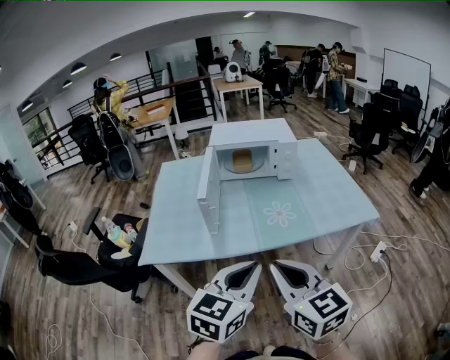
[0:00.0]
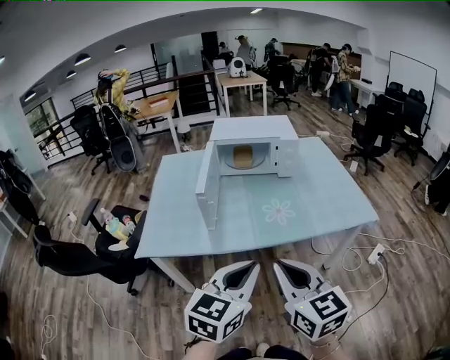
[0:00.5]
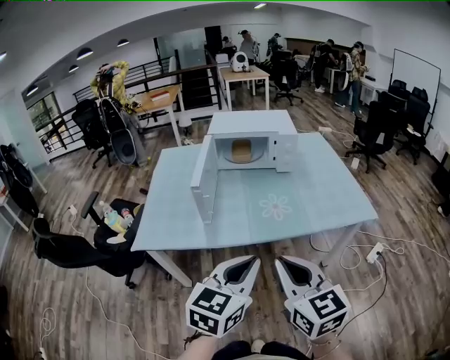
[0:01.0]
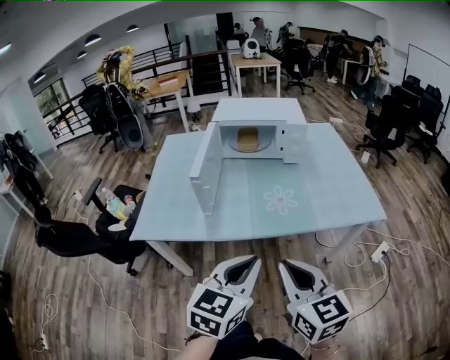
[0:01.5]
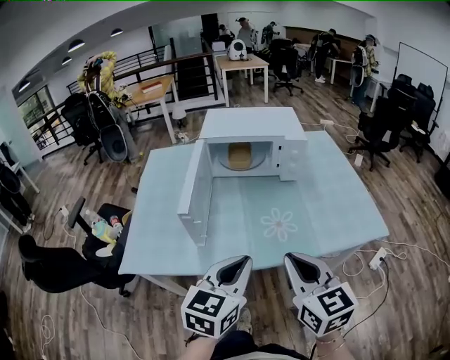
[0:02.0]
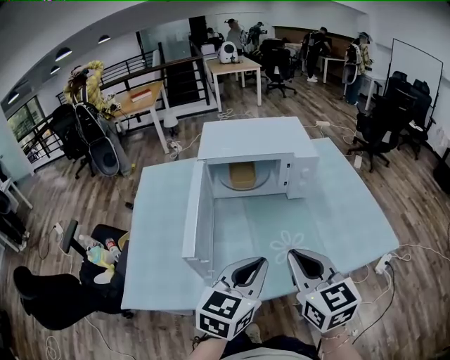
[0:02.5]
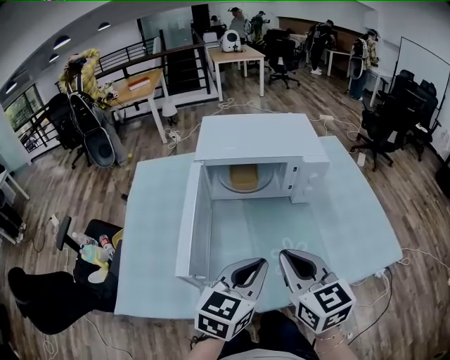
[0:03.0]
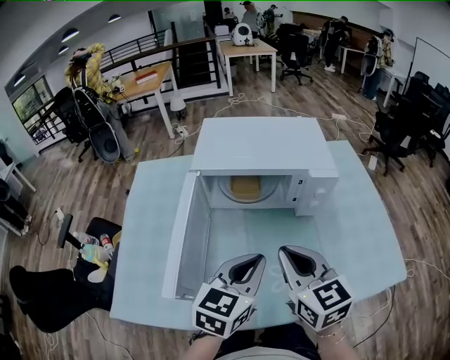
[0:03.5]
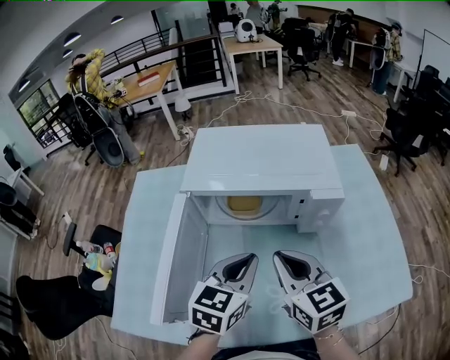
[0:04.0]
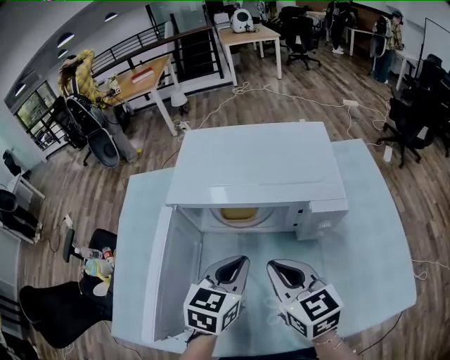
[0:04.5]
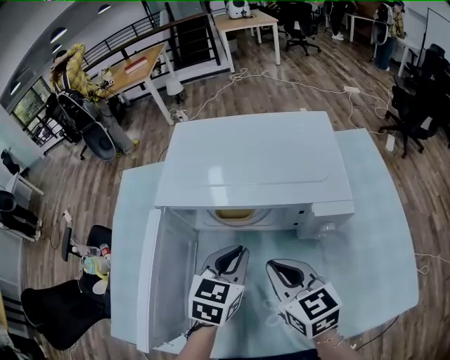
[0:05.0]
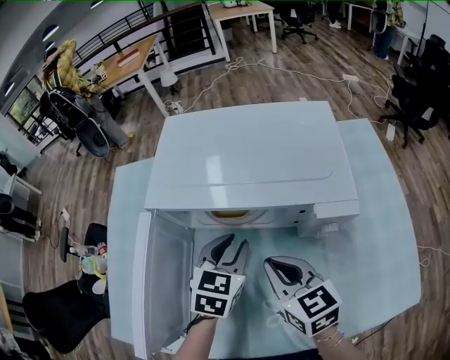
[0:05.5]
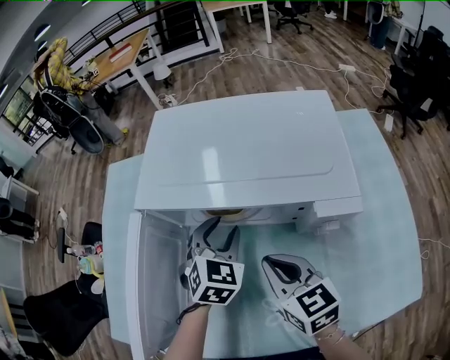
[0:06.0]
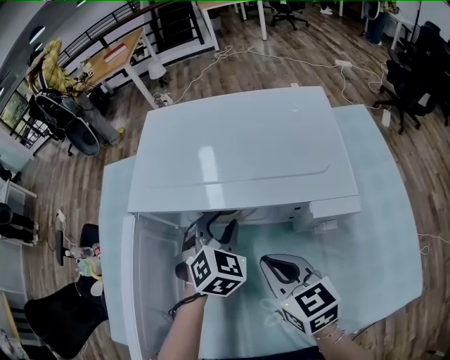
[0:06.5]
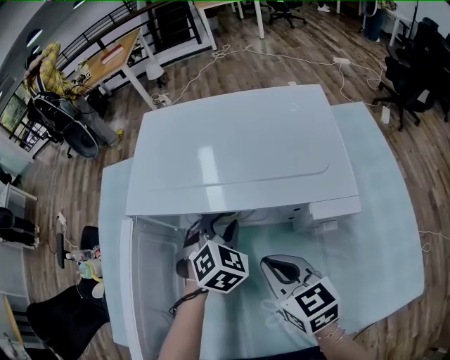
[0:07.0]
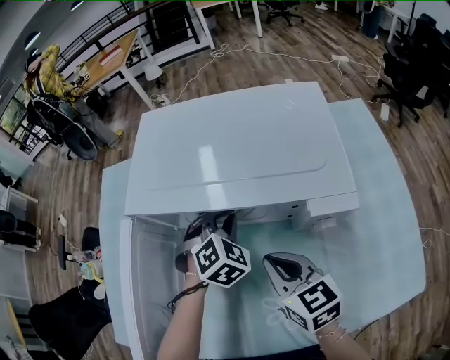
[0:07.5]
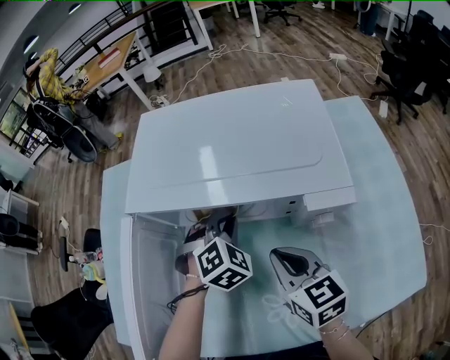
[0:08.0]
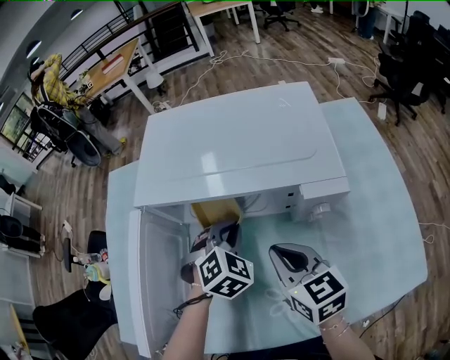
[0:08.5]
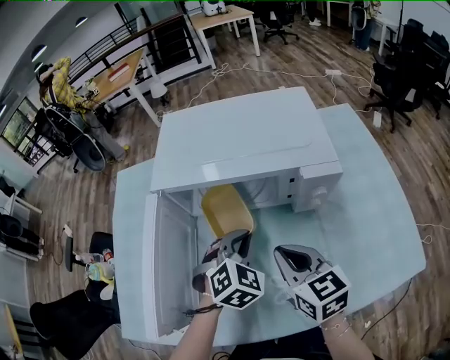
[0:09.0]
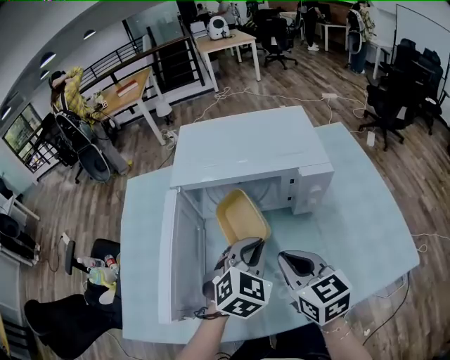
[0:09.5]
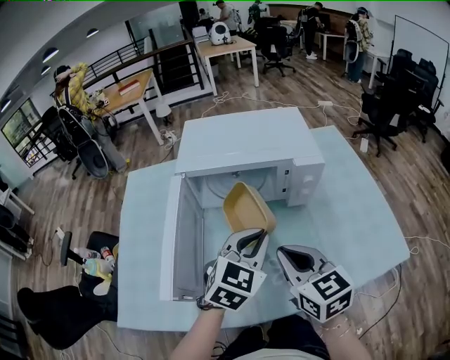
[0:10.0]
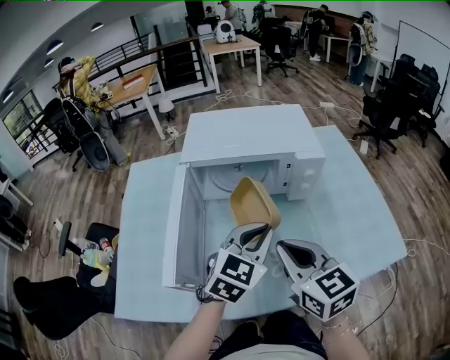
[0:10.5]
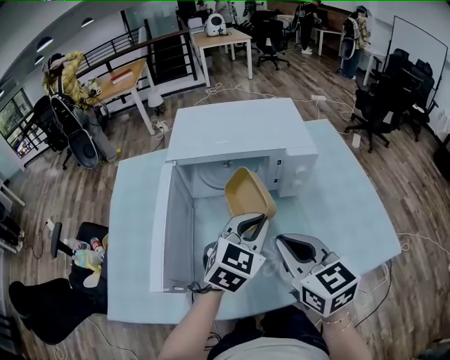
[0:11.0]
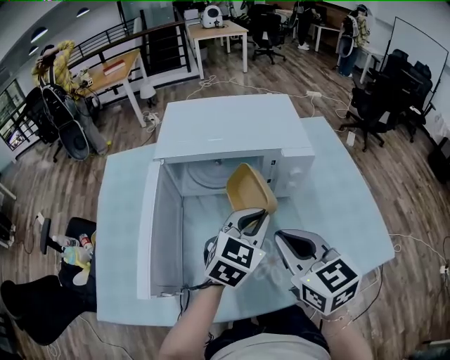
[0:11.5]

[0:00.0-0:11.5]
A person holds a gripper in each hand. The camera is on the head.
0:00.0 to 0:02.0: Both grippers move forward, about 15 cm.
0:02.0 to 0:04.0: Both grippers travel together forward, some 35 cm.
0:04.0 to 0:06.0: The right gripper goes roughly 15 cm downward and forward. The left gripper moves forward and downward, some 20 cm, turns by about 30 degrees, and opens its fingers.
0:06.0 to 0:07.5: The left gripper changes its angle by roughly 20 degrees, and closes.
0:07.5 to 0:09.5: The right gripper goes approximately 15 cm backward and upward, while the left gripper is displaced backward and upward by about 20 cm, and turns by about 20 degrees.
0:09.5 to 0:11.5: The right gripper goes approximately 5 cm upward, while the left gripper goes about 5 cm to the right, and changes its angle by approximately 20 degrees.

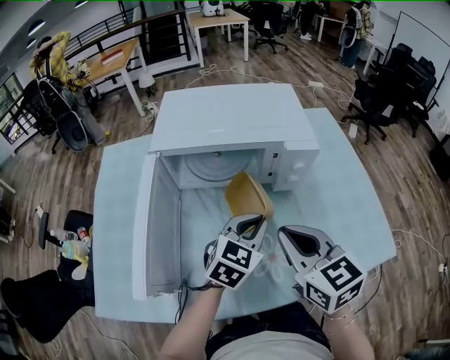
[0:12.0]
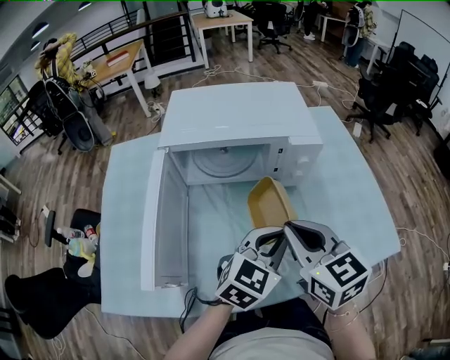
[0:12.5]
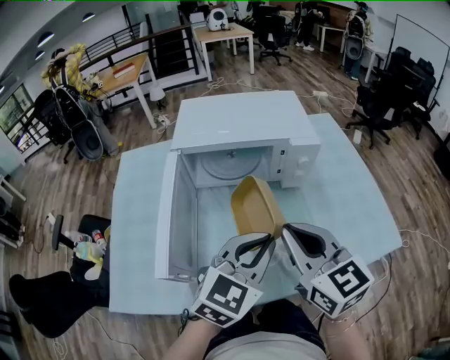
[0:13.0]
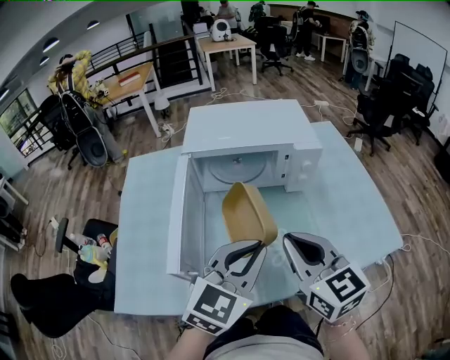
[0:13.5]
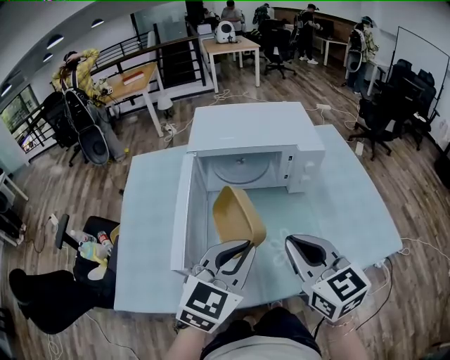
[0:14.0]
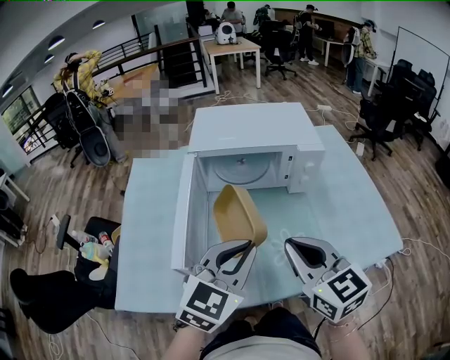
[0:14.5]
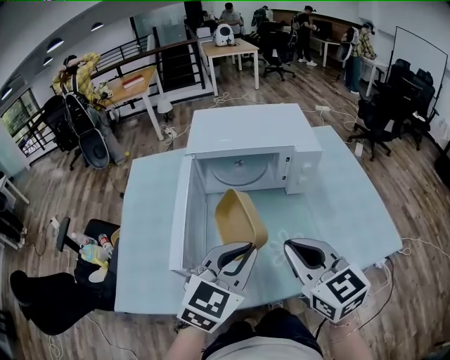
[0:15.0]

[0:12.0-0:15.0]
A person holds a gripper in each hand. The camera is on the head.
0:12.0 to 0:13.5: The left gripper shifts approximately 20 cm backward and upward. The right gripper travels backward and upward by some 10 cm.
0:13.5 to 0:15.0: The grippers stay close to where they were, moving slightly.

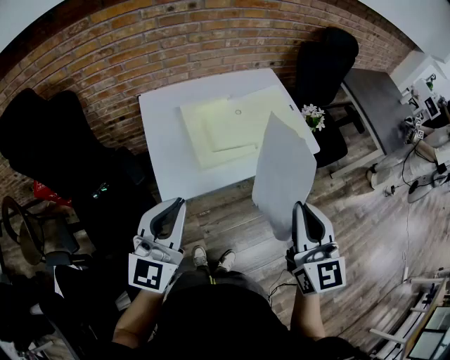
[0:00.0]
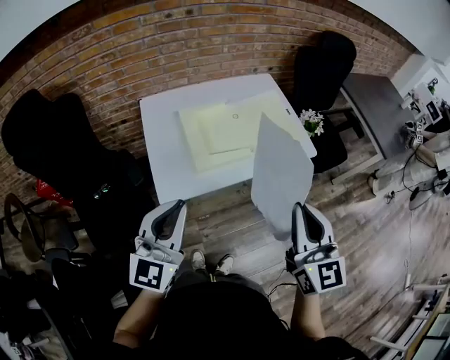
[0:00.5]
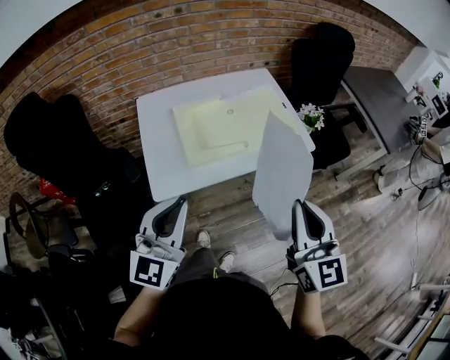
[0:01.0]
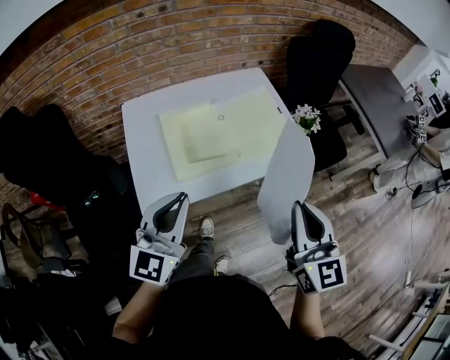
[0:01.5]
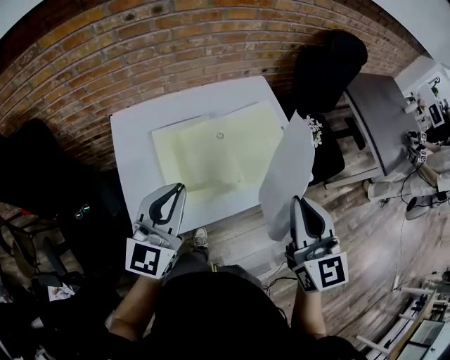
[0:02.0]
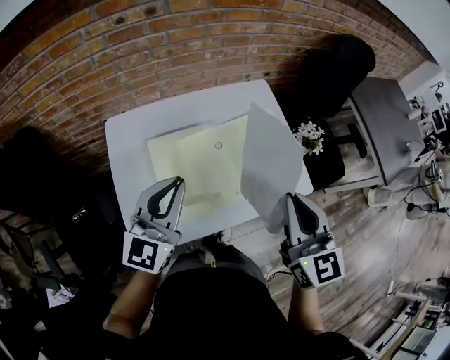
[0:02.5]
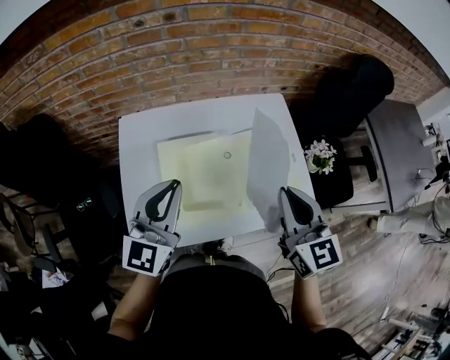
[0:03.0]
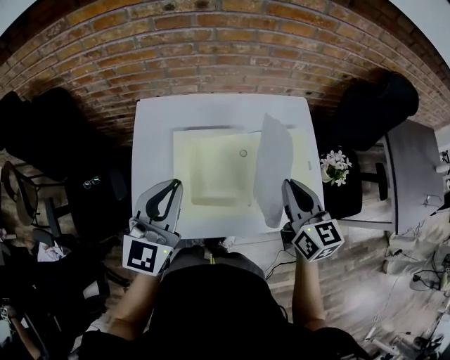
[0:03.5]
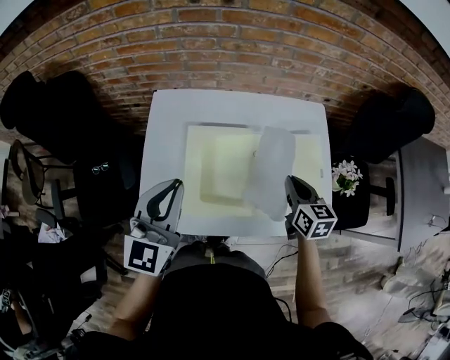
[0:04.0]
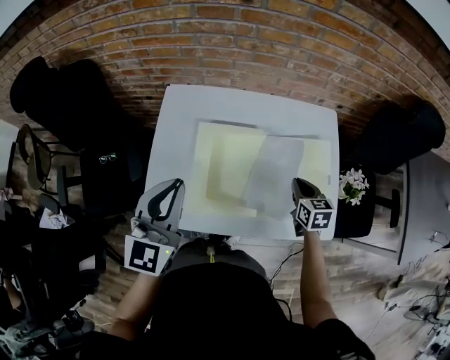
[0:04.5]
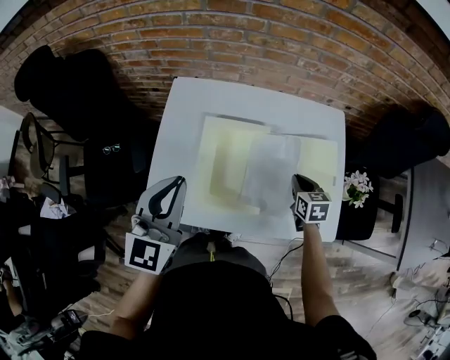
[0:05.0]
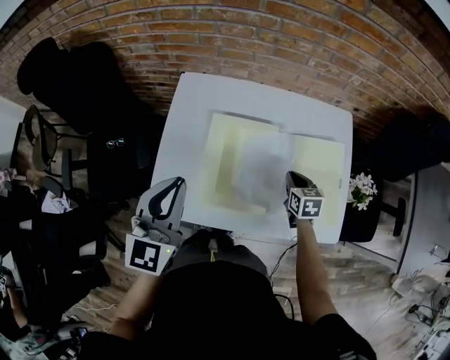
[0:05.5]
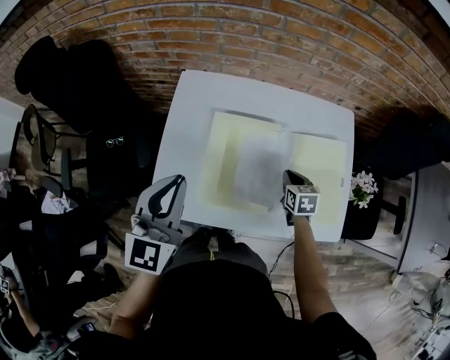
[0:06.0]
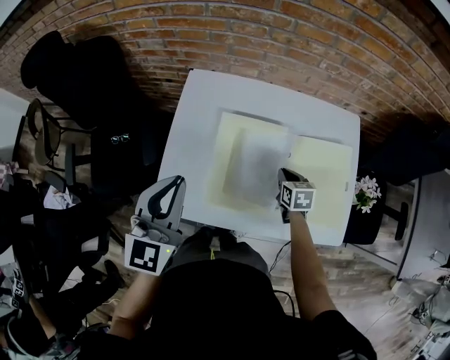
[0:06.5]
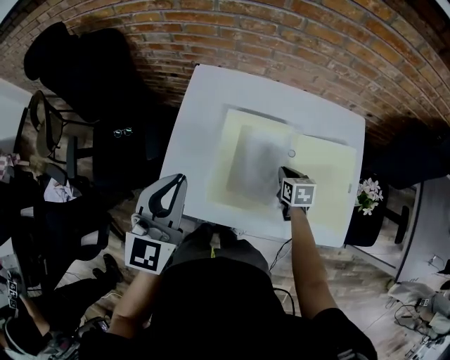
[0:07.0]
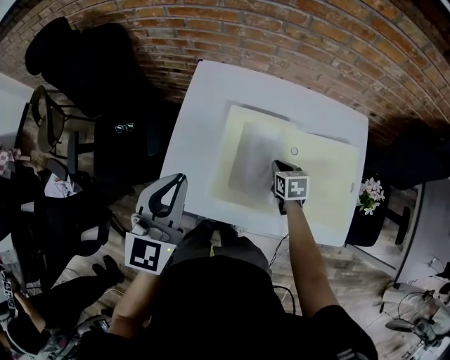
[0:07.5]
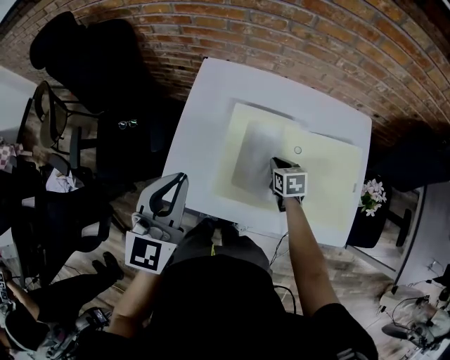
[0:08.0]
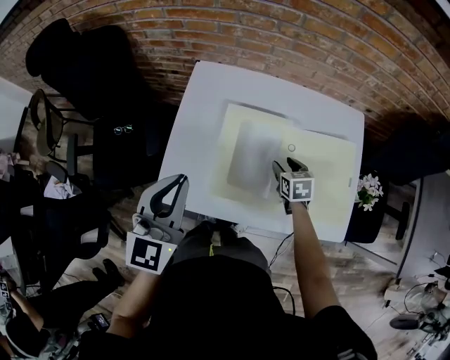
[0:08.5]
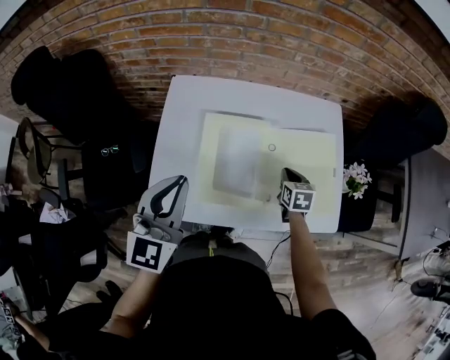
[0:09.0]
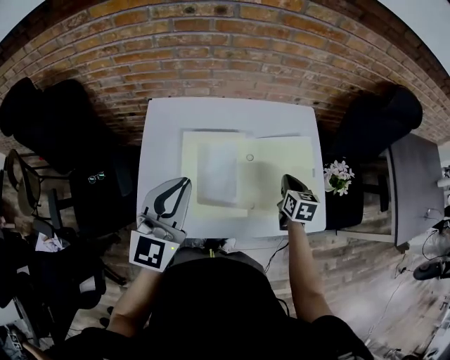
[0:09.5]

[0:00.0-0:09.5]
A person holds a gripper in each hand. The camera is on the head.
0:00.0 to 0:02.0: The two grippers go roughly 20 cm forward.
0:02.0 to 0:04.0: The left gripper shifts roughly 5 cm forward, and changes its angle by about 20 degrees, while the right gripper heads forward and downward, covering some 30 cm, and turns by about 40 degrees.
0:04.0 to 0:05.5: The right gripper travels downward by some 10 cm.
0:05.5 to 0:07.5: The right gripper travels to the left by roughly 10 cm.
0:07.5 to 0:09.5: The right gripper moves about 20 cm, turns by about 30 degrees, and opens, then closes again. Meanwhile the left gripper moves roughly 10 cm.

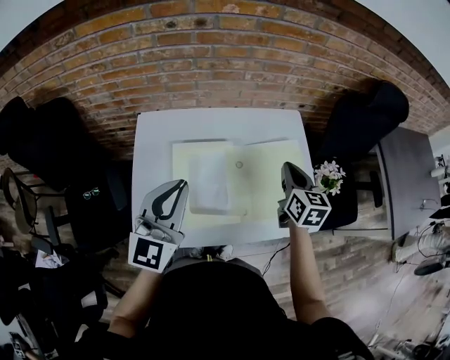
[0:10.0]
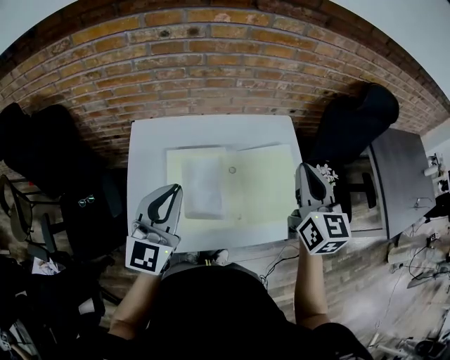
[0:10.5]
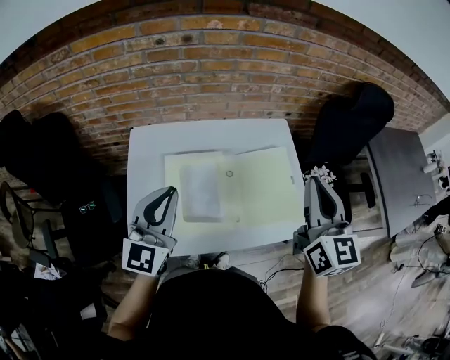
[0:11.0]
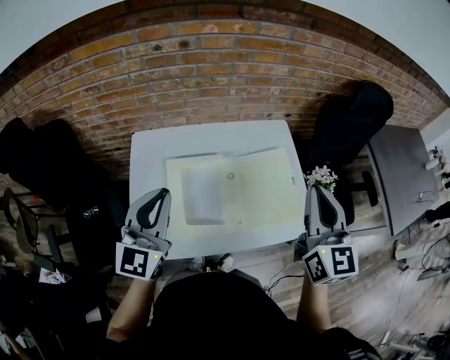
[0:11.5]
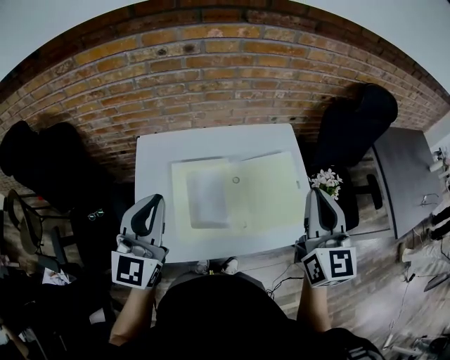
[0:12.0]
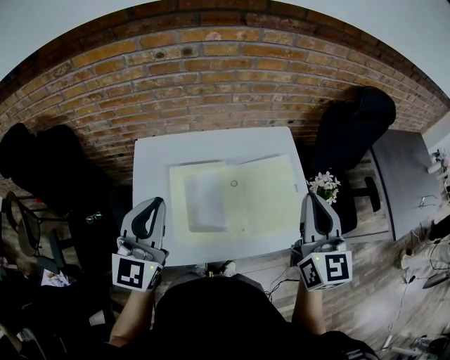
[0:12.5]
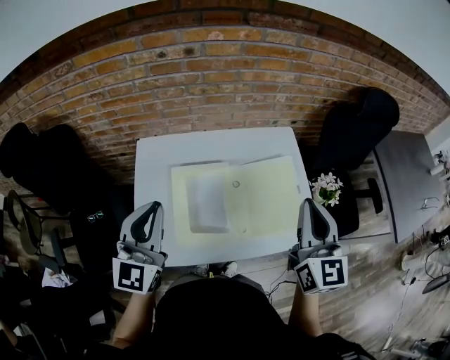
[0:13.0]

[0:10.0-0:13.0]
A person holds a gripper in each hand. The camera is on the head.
0:10.0 to 0:11.5: The right gripper is displaced upward and backward by roughly 20 cm, and swivels approximately 20 degrees.
0:11.5 to 0:13.0: The grippers move only a little.
